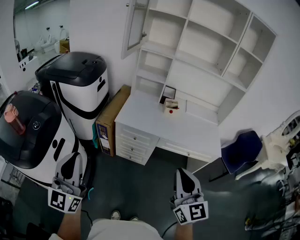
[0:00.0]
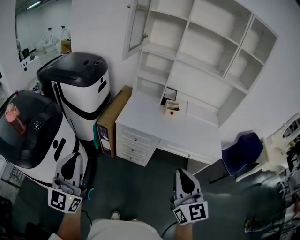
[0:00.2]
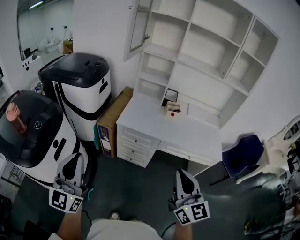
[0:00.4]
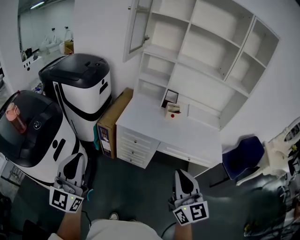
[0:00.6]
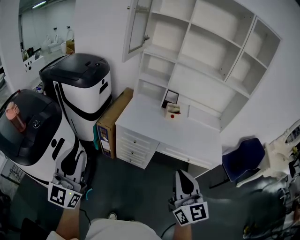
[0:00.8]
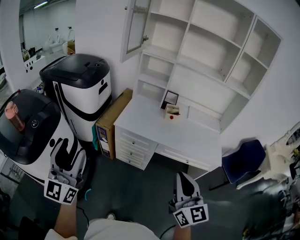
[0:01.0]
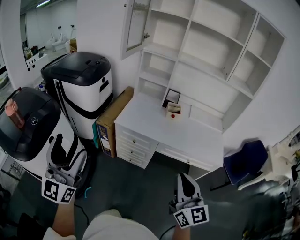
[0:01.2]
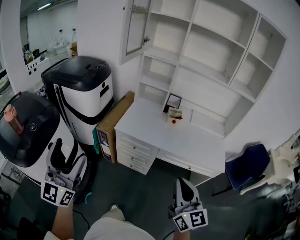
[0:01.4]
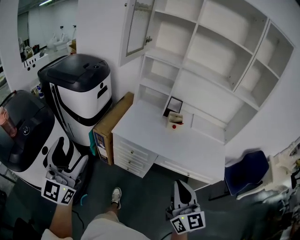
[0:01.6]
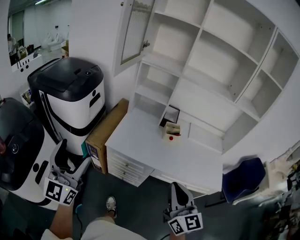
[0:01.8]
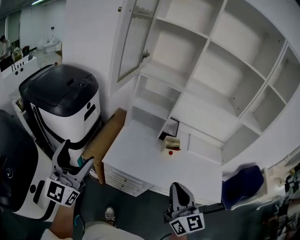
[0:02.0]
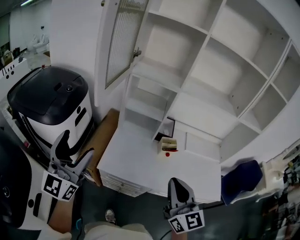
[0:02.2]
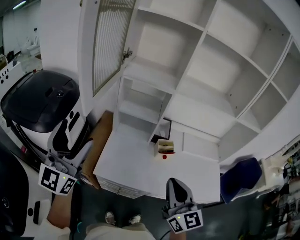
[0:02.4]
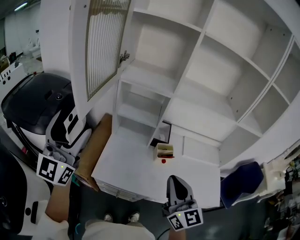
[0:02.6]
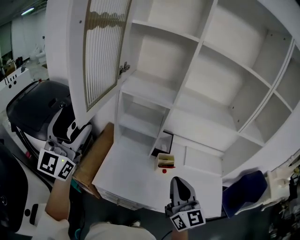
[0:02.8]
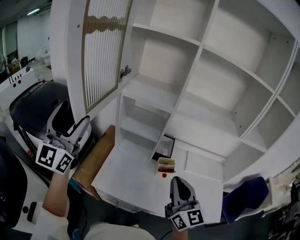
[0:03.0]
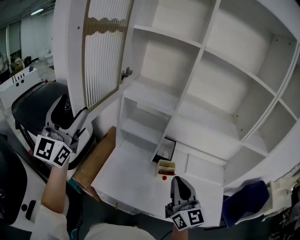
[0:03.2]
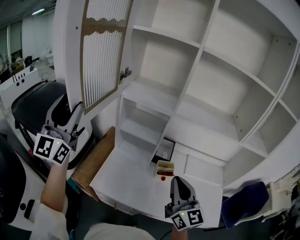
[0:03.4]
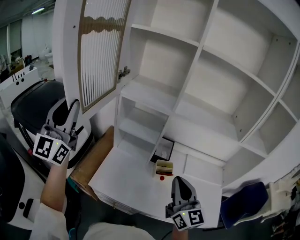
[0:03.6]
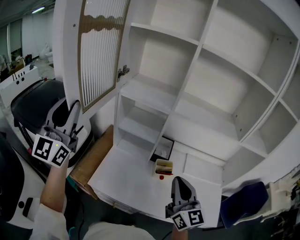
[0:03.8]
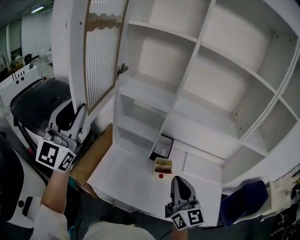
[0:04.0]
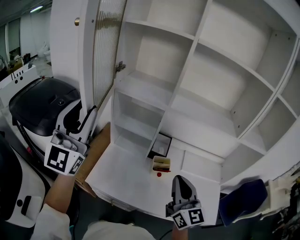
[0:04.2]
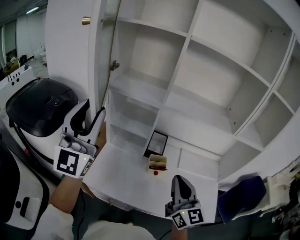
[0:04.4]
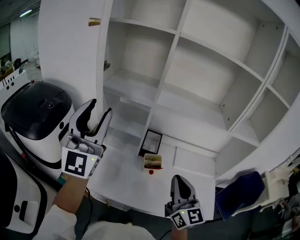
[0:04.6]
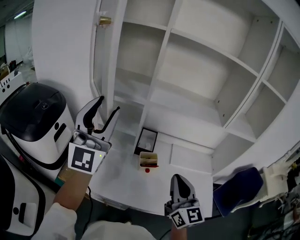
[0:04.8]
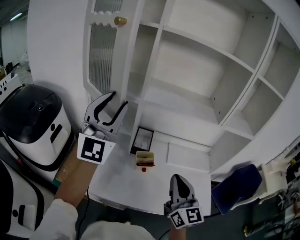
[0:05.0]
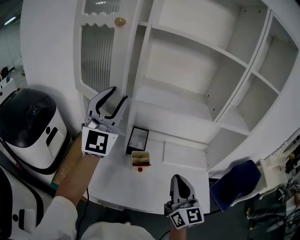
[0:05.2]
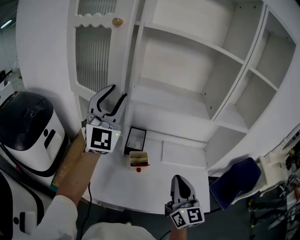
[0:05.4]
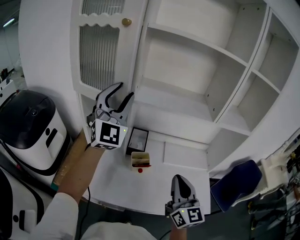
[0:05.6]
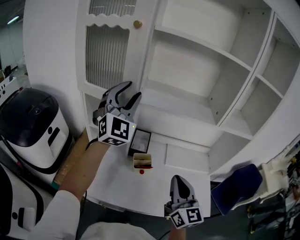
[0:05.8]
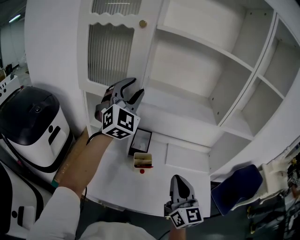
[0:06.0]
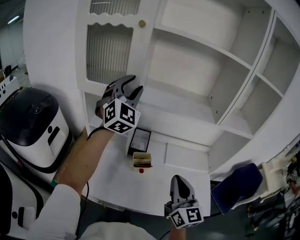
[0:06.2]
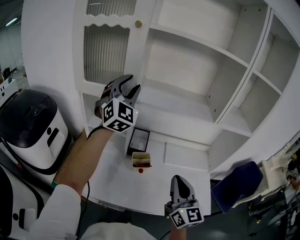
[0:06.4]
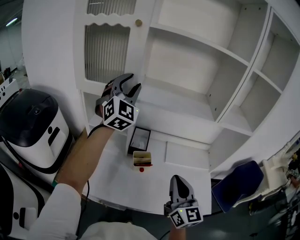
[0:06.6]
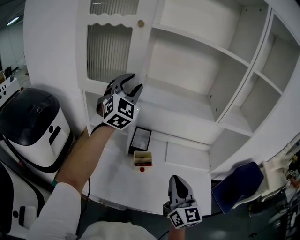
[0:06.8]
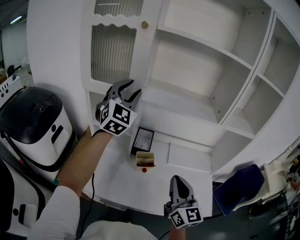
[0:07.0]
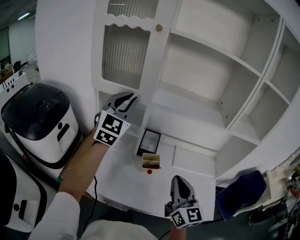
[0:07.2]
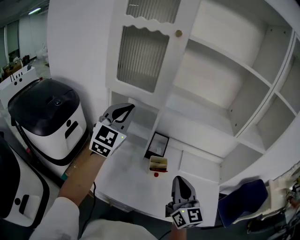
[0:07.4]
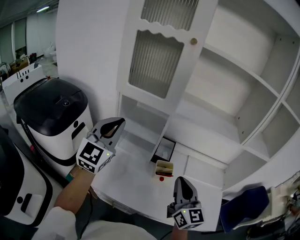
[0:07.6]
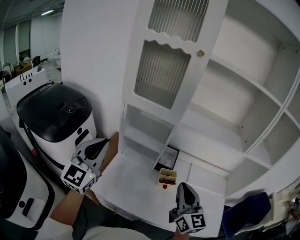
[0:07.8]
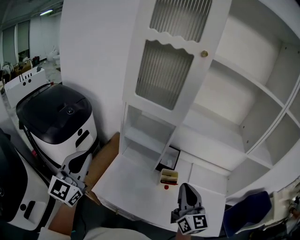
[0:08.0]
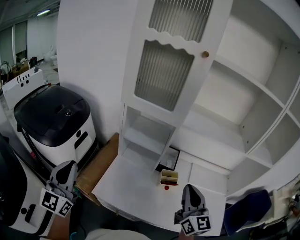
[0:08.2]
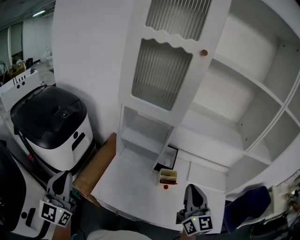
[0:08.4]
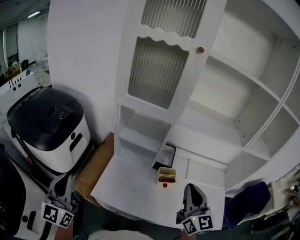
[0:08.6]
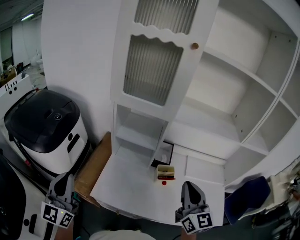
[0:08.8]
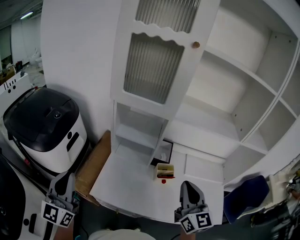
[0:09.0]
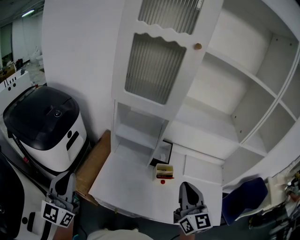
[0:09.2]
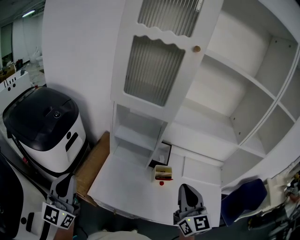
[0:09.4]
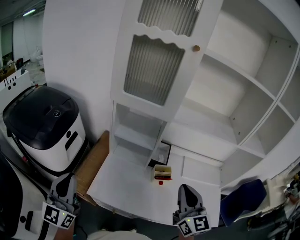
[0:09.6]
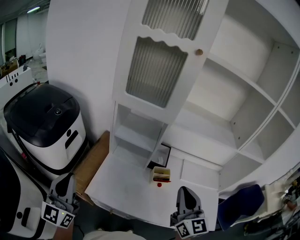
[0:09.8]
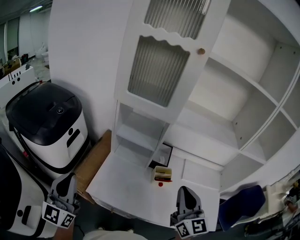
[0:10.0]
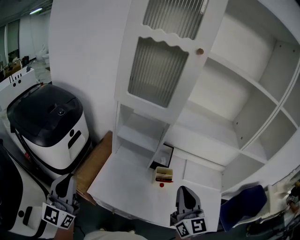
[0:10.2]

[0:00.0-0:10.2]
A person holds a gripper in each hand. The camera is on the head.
0:00.0 to 0:01.4: The left gripper ends up roughly 5 cm from where it was, and opens its fingers; the right gripper goes approximately 5 cm to the right.
0:01.4 to 0:03.0: The pair of grippers is taken forward, about 50 cm.
0:03.0 to 0:04.4: The right gripper travels to the right by approximately 5 cm. The left gripper travels to the right by roughly 15 cm, and closes up.
0:04.4 to 0:05.8: The right gripper moves to the right, roughly 10 cm; the left gripper shifts about 25 cm to the right and forward, and swivels approximately 30 degrees.
0:05.8 to 0:07.2: The left gripper is displaced to the left by approximately 5 cm.
0:07.2 to 0:08.8: The right gripper shifts some 10 cm to the left. Meanwhile the left gripper is displaced to the left, backward and downward by approximately 40 cm, and rotates approximately 30 degrees.
0:08.8 to 0:10.2: The grippers stay close to where they were, moving slightly.

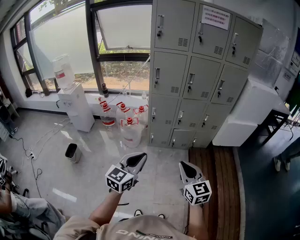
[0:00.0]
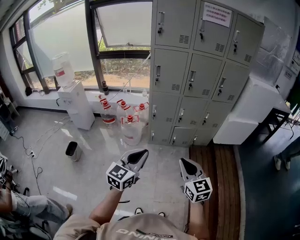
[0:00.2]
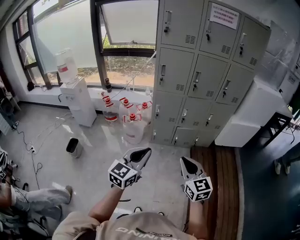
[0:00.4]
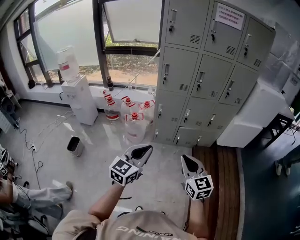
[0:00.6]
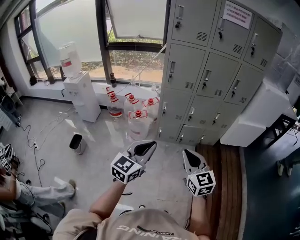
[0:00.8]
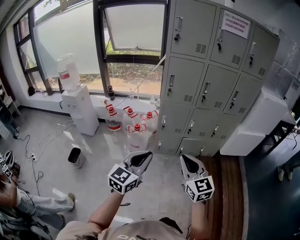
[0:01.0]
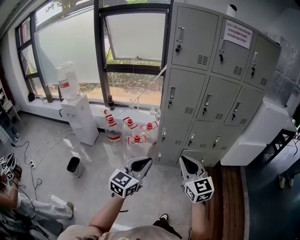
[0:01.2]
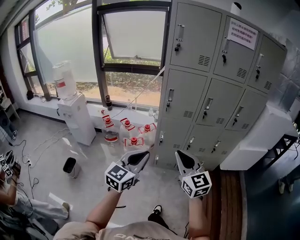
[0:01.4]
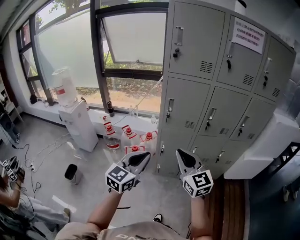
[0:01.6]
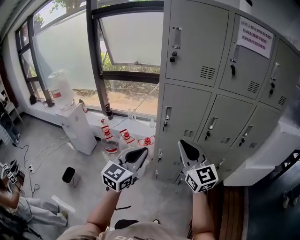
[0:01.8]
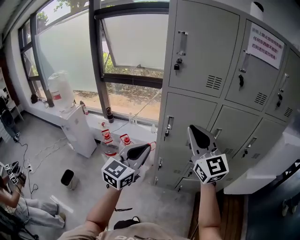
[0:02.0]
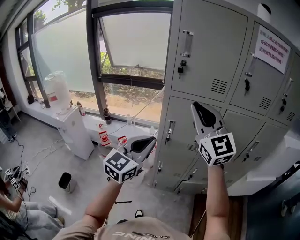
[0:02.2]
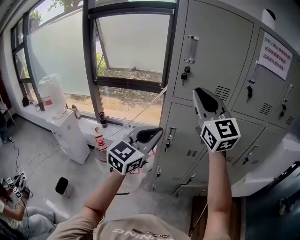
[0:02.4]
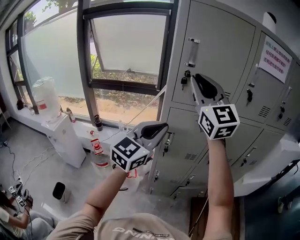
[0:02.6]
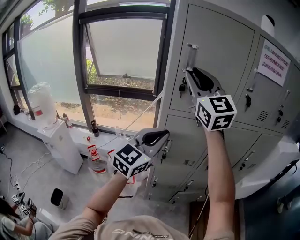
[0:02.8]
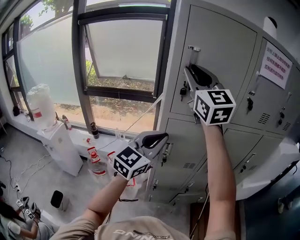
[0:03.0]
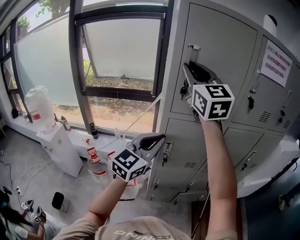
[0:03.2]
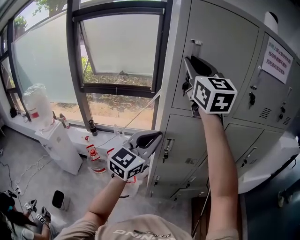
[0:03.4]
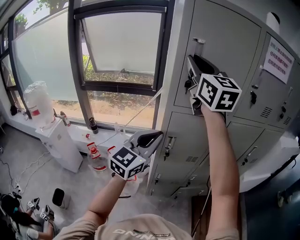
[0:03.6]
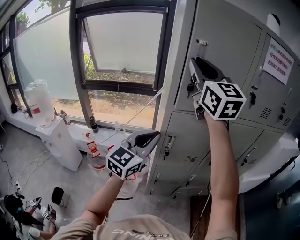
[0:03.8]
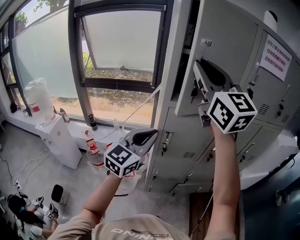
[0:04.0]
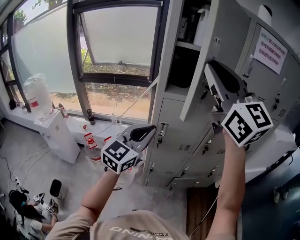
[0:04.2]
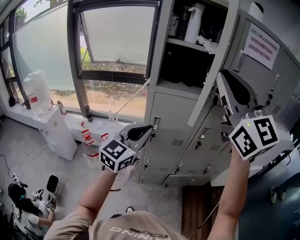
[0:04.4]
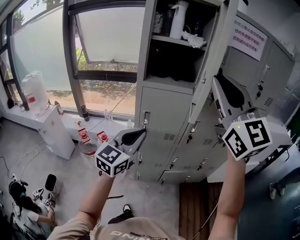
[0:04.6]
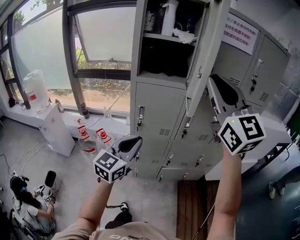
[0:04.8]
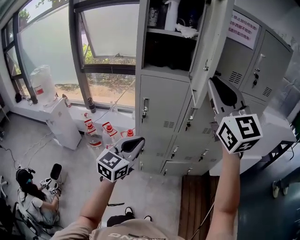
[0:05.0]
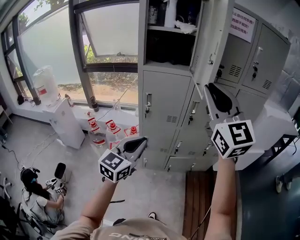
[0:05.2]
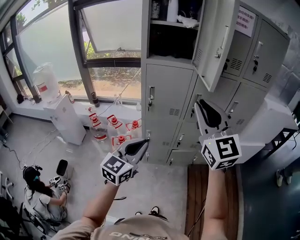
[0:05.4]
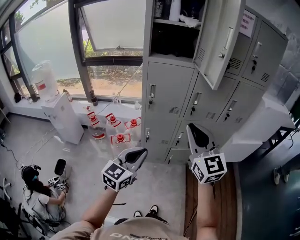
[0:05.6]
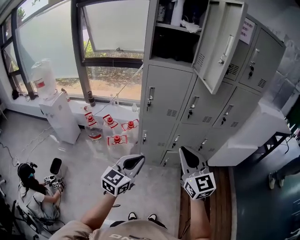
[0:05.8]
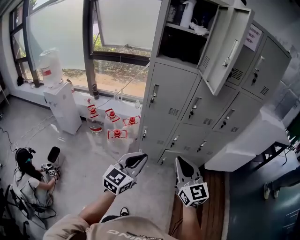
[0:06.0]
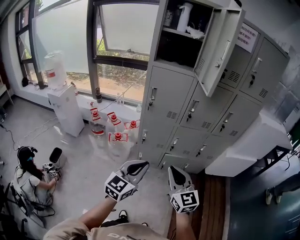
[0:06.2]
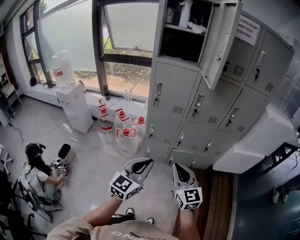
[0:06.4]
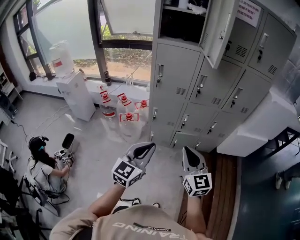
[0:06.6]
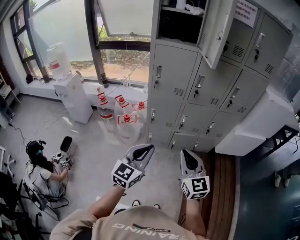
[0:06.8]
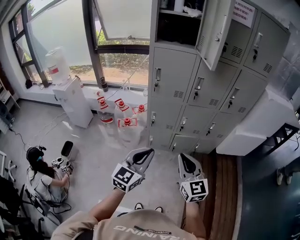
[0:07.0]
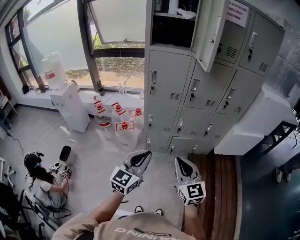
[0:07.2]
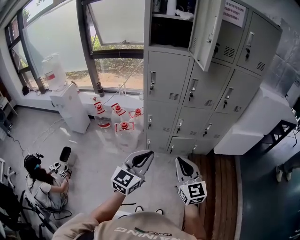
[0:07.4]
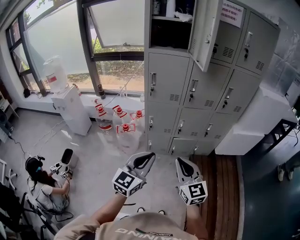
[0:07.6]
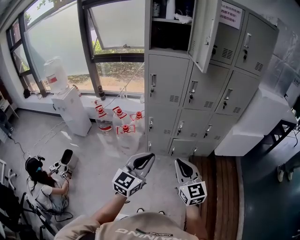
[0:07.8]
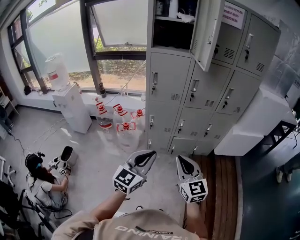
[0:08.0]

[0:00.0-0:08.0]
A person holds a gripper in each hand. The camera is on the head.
0:00.0 to 0:01.6: Both grippers move forward, roughly 30 cm.
0:01.6 to 0:03.2: The left gripper goes roughly 35 cm forward and upward, while the right gripper travels forward and upward by about 50 cm, and swivels approximately 20 degrees.
0:03.2 to 0:04.8: The left gripper travels backward, to the right and downward by approximately 20 cm. The right gripper goes some 35 cm backward and to the right.
0:04.8 to 0:06.4: The right gripper heads downward and backward, covering about 50 cm, and changes its angle by approximately 30 degrees, while the left gripper travels backward and downward by some 25 cm.
0:06.4 to 0:08.0: The right gripper moves backward, approximately 5 cm.

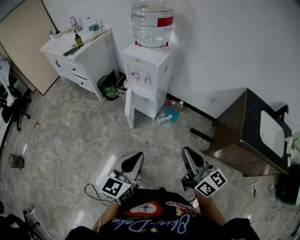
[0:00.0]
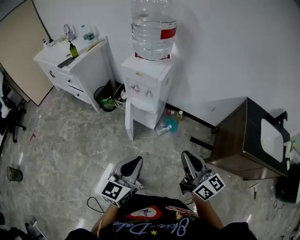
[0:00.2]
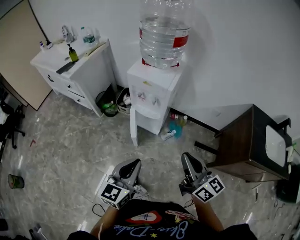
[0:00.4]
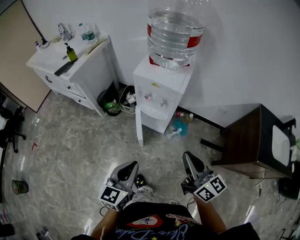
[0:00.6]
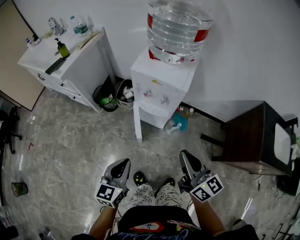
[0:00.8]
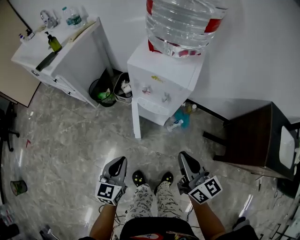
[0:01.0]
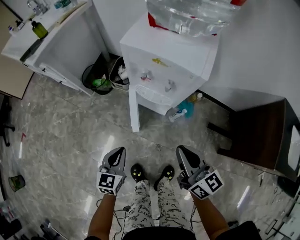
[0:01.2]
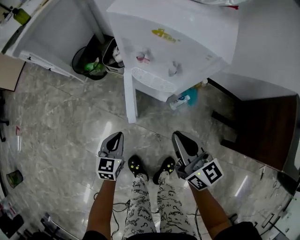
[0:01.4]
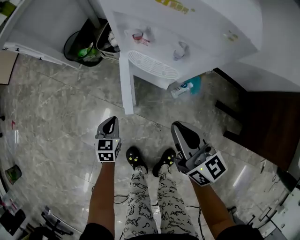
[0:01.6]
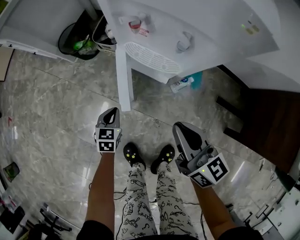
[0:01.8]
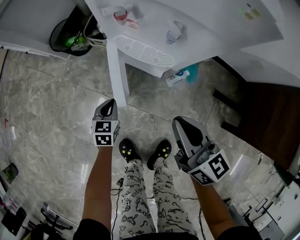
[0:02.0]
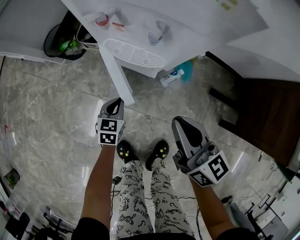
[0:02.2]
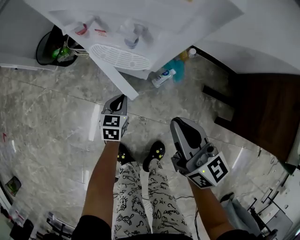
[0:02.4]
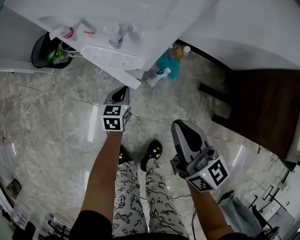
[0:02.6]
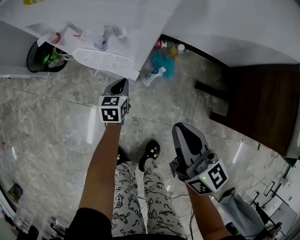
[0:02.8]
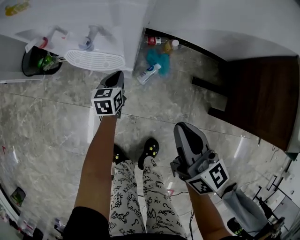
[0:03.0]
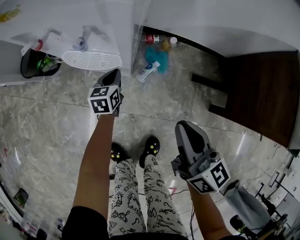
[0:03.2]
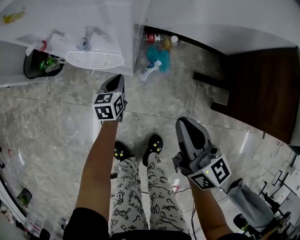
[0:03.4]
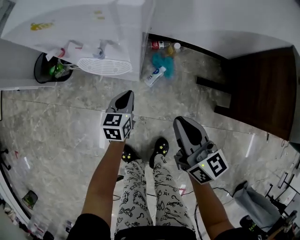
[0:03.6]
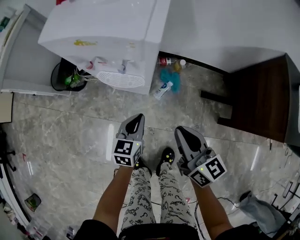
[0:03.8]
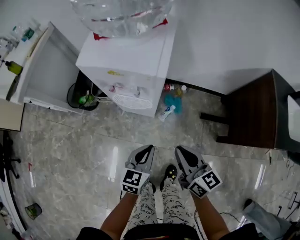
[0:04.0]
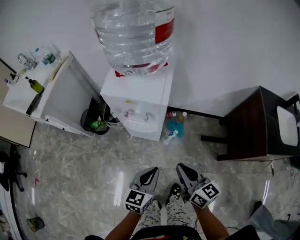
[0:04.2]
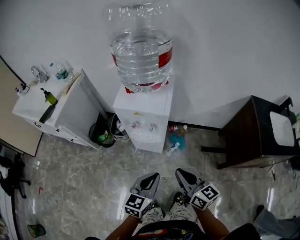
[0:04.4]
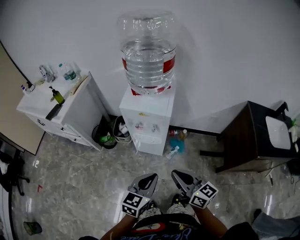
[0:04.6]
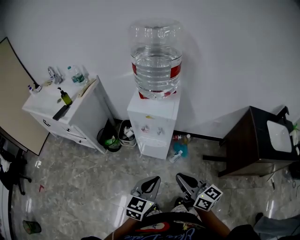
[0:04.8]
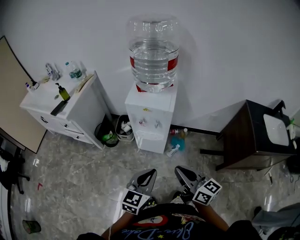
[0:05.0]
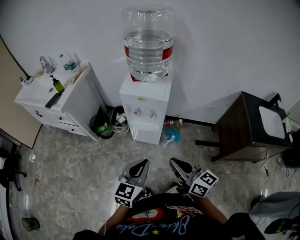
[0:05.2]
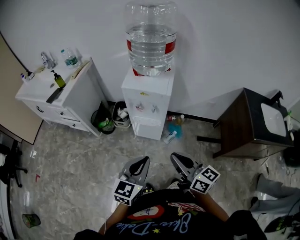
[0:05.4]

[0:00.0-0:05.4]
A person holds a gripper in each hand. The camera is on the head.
0:00.0 to 0:01.4: The right gripper moves forward, downward and to the left, roughly 50 cm; the left gripper shifts about 60 cm downward, forward and to the left, and rotates approximately 30 degrees.
0:01.4 to 0:02.8: The right gripper heads to the right, covering some 15 cm. Meanwhile the left gripper moves to the right, forward and downward, some 30 cm.
0:02.8 to 0:04.0: The right gripper travels upward by about 10 cm. Meanwhile the left gripper moves upward and backward, roughly 35 cm.
0:04.0 to 0:05.4: Both grippers travel together upward and backward, some 30 cm.
